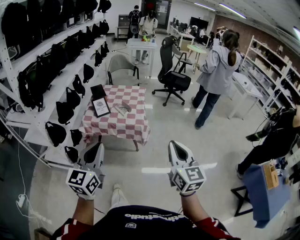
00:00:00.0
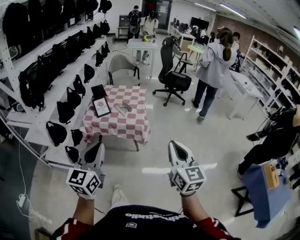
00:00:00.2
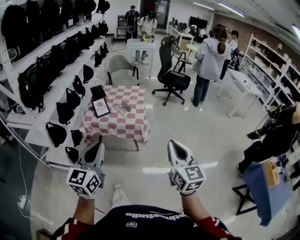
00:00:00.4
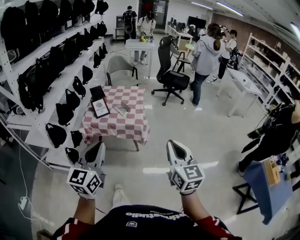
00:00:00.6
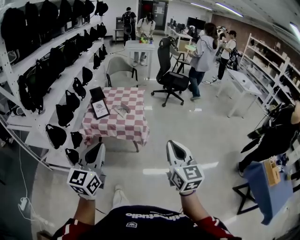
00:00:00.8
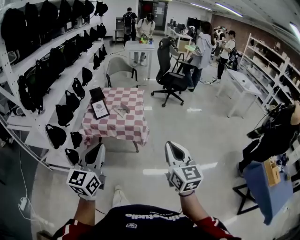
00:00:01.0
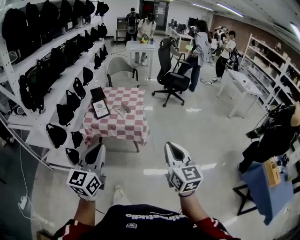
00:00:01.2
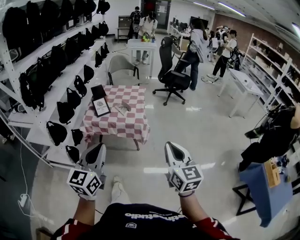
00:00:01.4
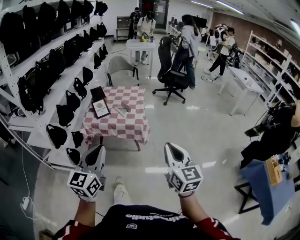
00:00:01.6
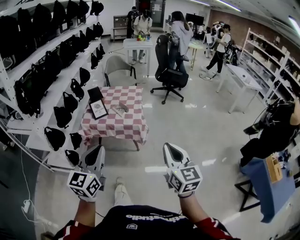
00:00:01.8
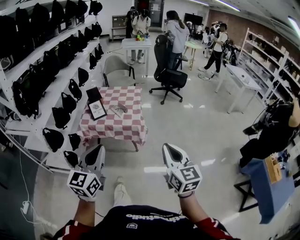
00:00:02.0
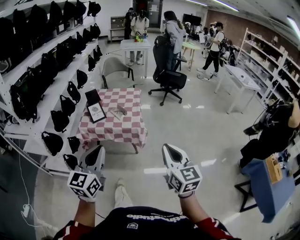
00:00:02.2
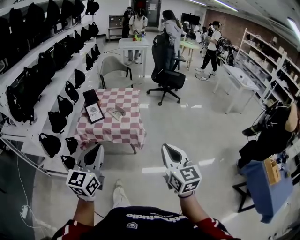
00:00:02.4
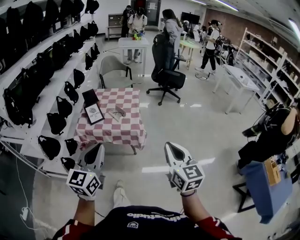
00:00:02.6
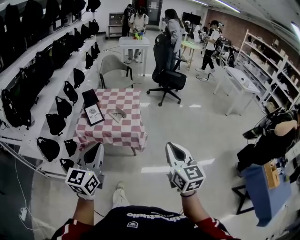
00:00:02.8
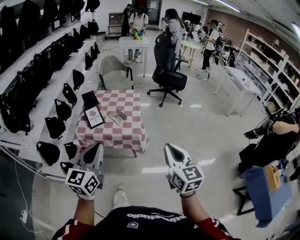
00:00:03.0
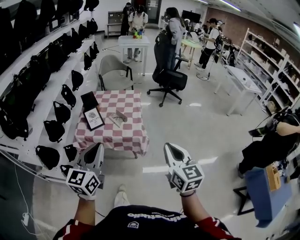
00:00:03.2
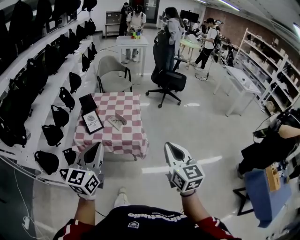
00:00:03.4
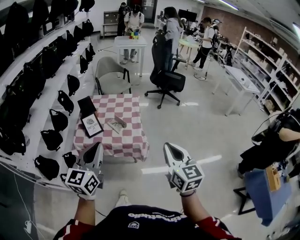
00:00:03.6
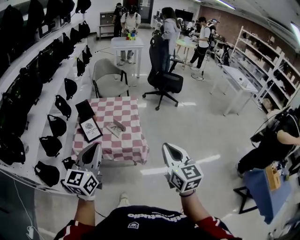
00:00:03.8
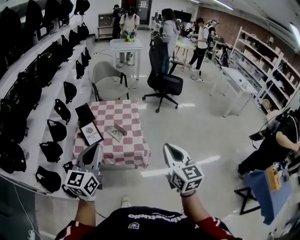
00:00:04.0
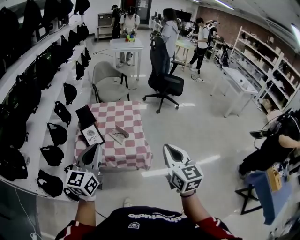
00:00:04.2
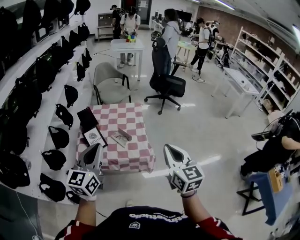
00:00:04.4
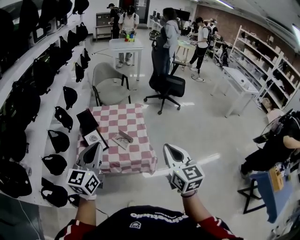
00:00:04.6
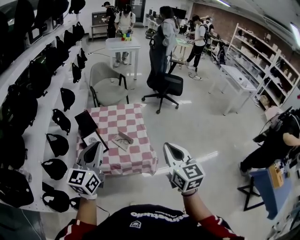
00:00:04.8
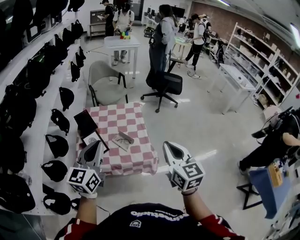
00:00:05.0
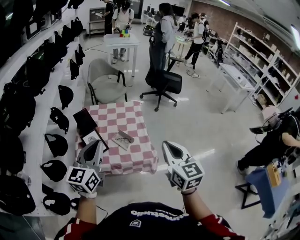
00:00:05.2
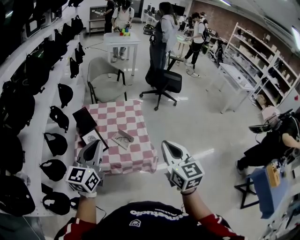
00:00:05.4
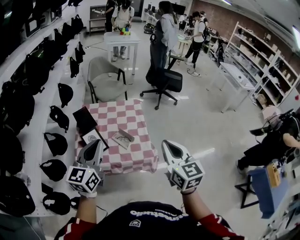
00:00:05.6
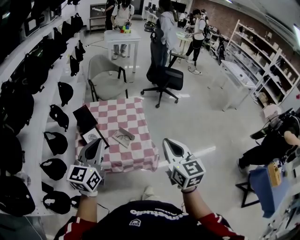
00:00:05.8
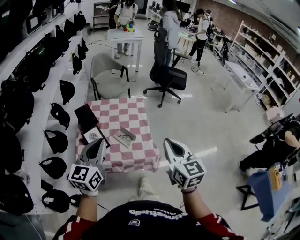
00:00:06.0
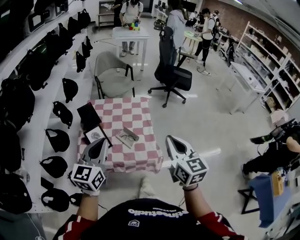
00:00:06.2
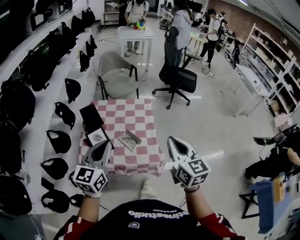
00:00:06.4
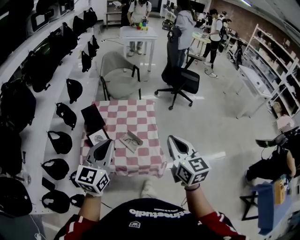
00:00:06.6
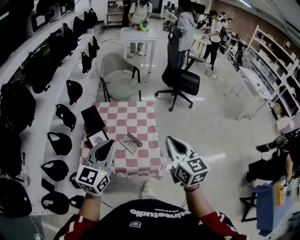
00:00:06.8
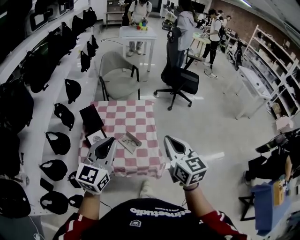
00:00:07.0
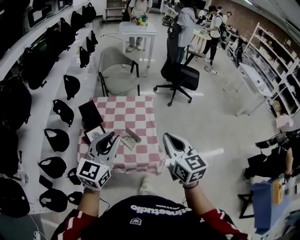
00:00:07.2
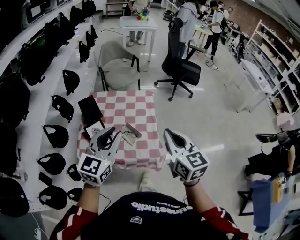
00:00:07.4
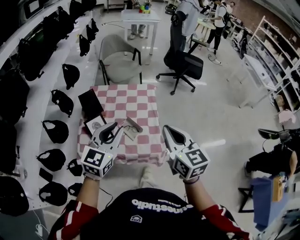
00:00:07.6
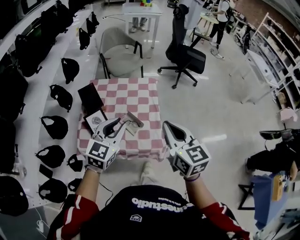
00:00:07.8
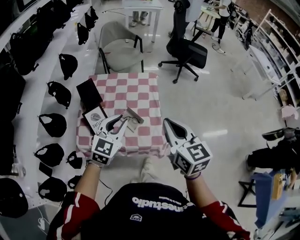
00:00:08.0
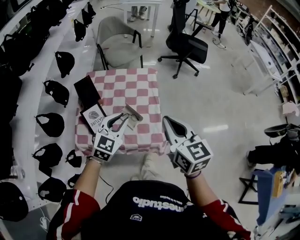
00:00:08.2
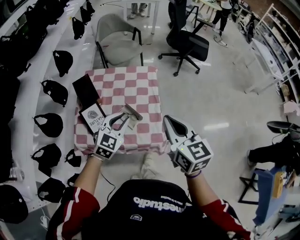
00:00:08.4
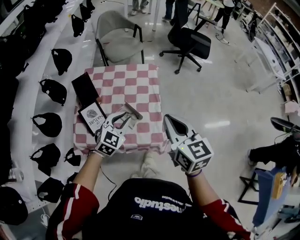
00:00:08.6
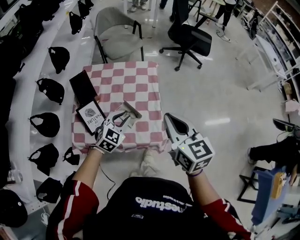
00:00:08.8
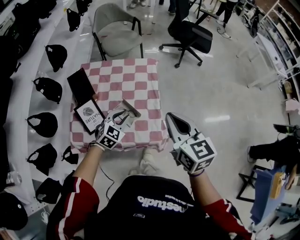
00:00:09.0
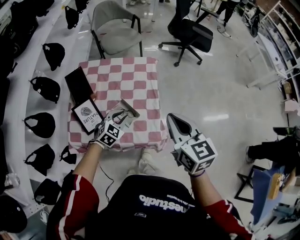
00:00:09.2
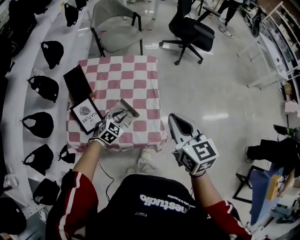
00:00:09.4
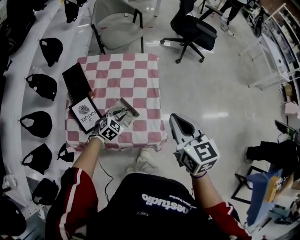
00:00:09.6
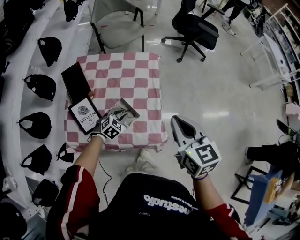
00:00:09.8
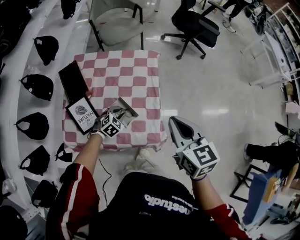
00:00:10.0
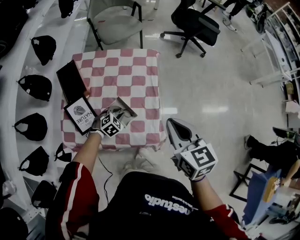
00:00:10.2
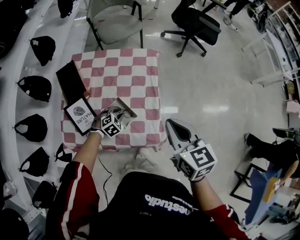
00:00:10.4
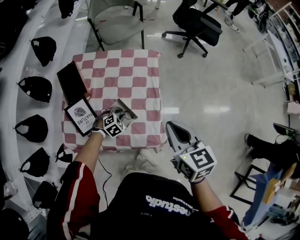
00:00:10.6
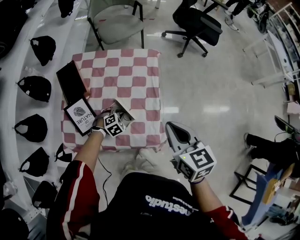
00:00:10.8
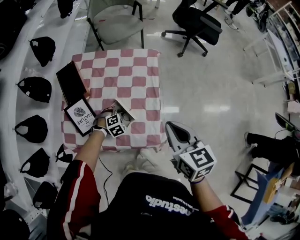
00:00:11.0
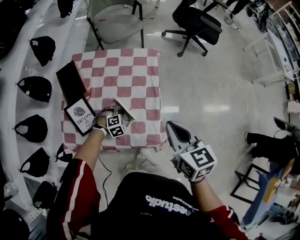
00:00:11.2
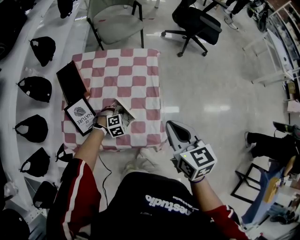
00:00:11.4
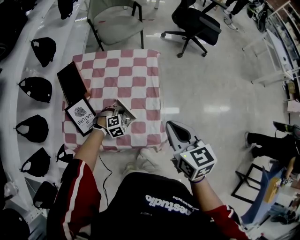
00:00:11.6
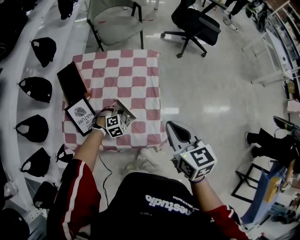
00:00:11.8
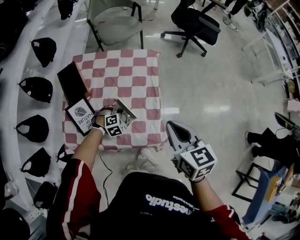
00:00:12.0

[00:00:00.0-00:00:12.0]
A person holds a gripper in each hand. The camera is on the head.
00:00:00.0 to 00:00:01.6: The grippers make only small movements.
00:00:01.6 to 00:00:03.0: Both grippers move forward, about 15 cm.
00:00:03.0 to 00:00:04.4: The left gripper moves forward, about 20 cm. The right gripper heads forward and to the left, covering some 20 cm.
00:00:04.4 to 00:00:06.0: The left gripper shifts roughly 10 cm forward. Meanwhile the right gripper heads forward and to the left, covering roughly 10 cm.
00:00:06.0 to 00:00:07.6: The right gripper goes approximately 10 cm forward; the left gripper shifts some 10 cm forward and to the right.
00:00:07.6 to 00:00:09.0: The right gripper shifts approximately 10 cm downward and forward, while the left gripper goes about 25 cm downward, and rotates about 30 degrees.
00:00:09.0 to 00:00:10.4: The left gripper moves downward, some 20 cm, and rotates approximately 30 degrees. Meanwhile the right gripper shifts some 5 cm downward.
00:00:10.4 to 00:00:12.0: The grippers stay close to where they were, moving slightly.

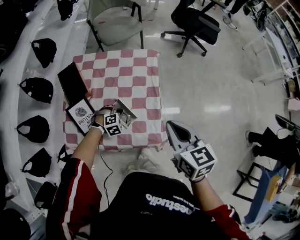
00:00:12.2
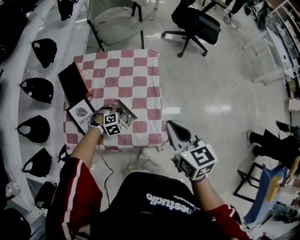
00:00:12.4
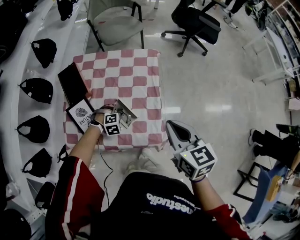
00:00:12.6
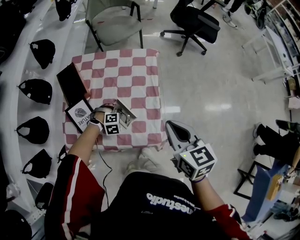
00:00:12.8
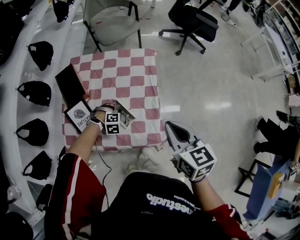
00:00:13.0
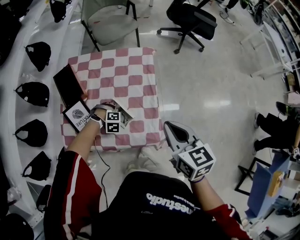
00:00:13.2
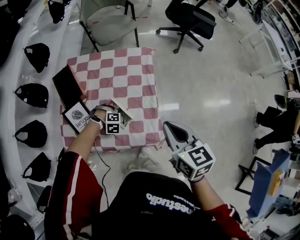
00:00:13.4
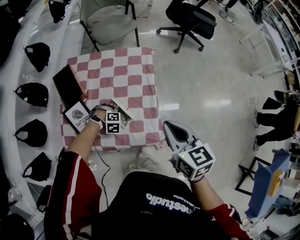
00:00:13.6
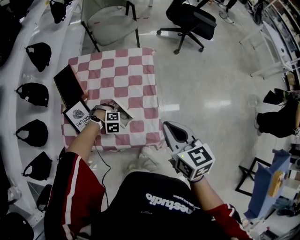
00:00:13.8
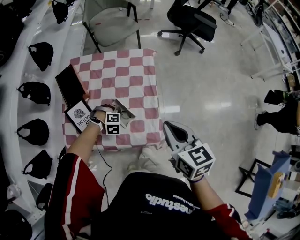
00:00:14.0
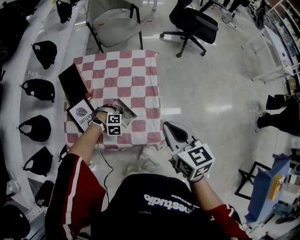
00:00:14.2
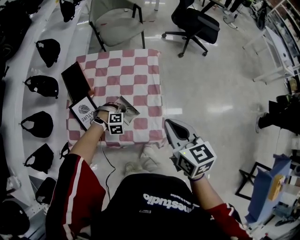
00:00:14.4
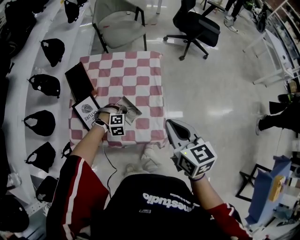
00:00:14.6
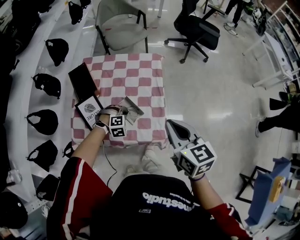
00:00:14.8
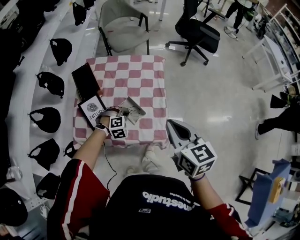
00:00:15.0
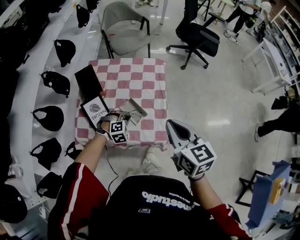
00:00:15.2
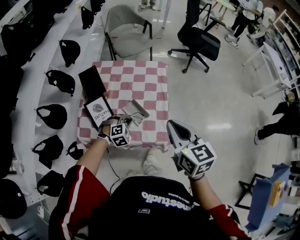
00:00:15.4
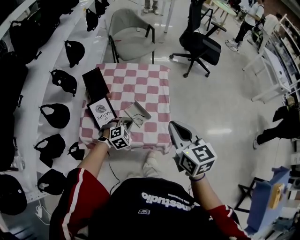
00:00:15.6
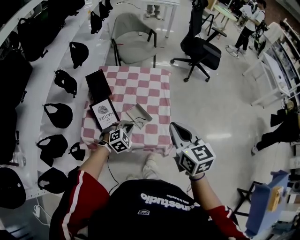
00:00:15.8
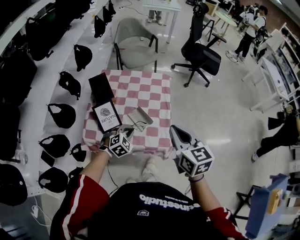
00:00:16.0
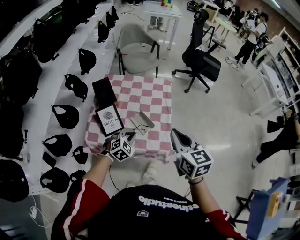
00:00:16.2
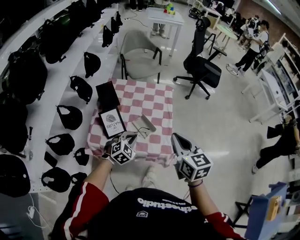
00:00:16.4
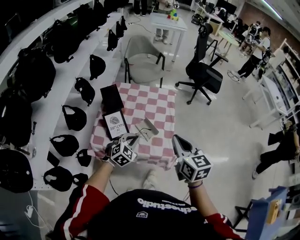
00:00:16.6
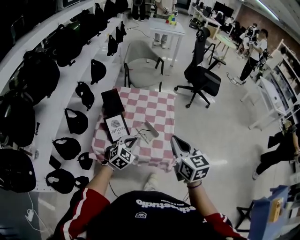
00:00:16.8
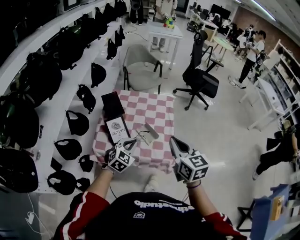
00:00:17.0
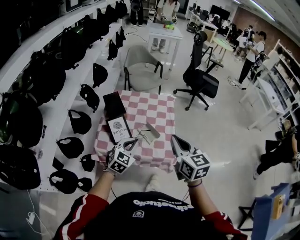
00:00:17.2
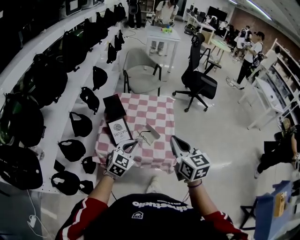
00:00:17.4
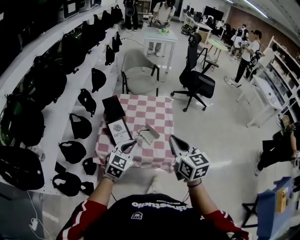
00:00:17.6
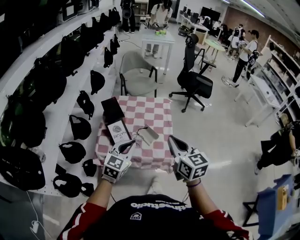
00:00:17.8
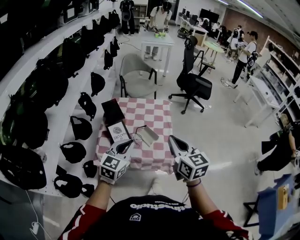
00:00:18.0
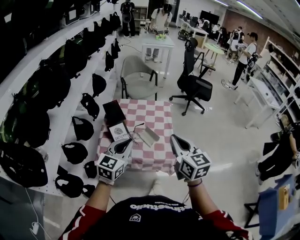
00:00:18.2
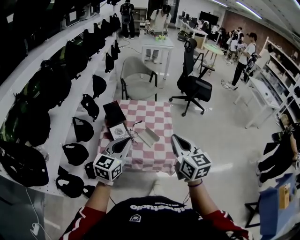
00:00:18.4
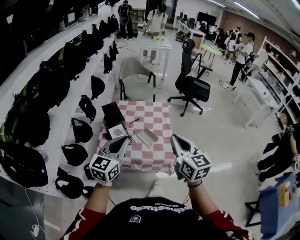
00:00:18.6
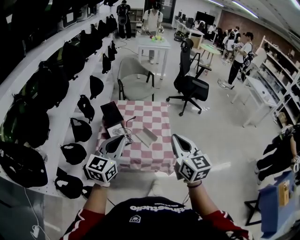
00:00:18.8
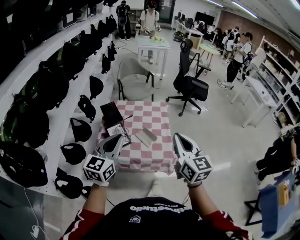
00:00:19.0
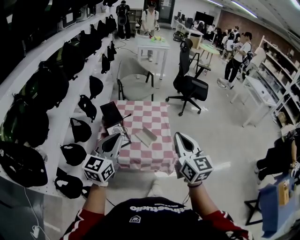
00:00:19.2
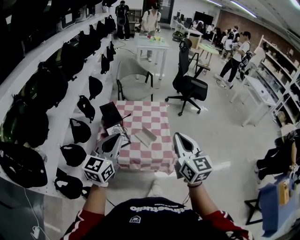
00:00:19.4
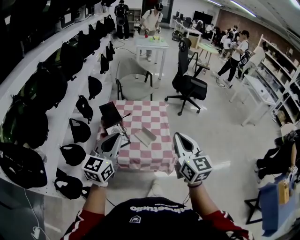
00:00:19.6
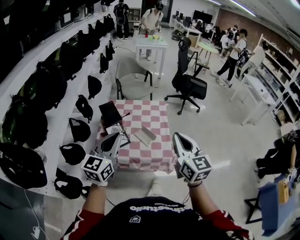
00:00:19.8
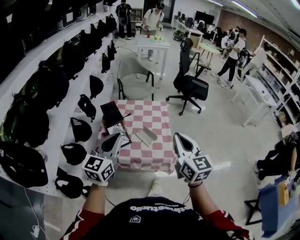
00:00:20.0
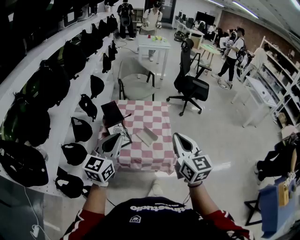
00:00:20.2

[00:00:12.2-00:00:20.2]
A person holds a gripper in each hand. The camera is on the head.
00:00:12.2 to 00:00:13.8: The left gripper changes its angle by some 20 degrees.
00:00:13.8 to 00:00:15.4: The left gripper moves upward, some 10 cm, and swivels roughly 30 degrees. Meanwhile the right gripper shifts by about 10 cm.
00:00:15.4 to 00:00:17.0: The right gripper moves backward, to the left and upward, roughly 10 cm. The left gripper travels upward and backward by approximately 20 cm, and swivels about 40 degrees.
00:00:17.0 to 00:00:18.6: The right gripper travels backward and upward by about 10 cm. Meanwhile the left gripper is displaced upward and backward by some 20 cm, and rotates about 40 degrees.
00:00:18.6 to 00:00:20.2: The grippers make only small movements.

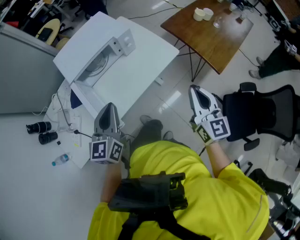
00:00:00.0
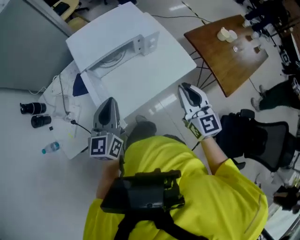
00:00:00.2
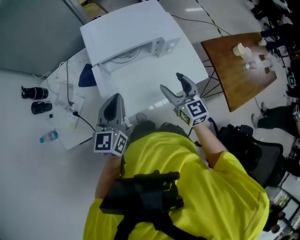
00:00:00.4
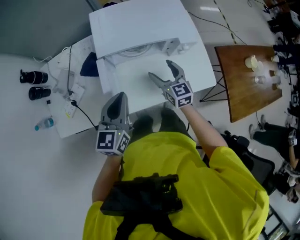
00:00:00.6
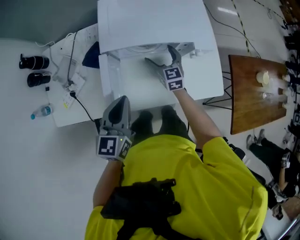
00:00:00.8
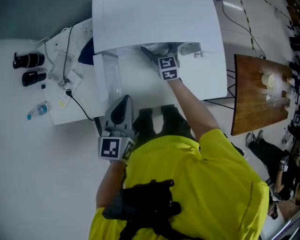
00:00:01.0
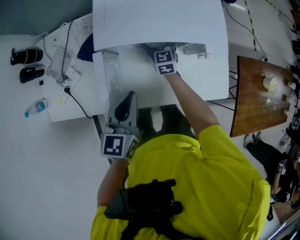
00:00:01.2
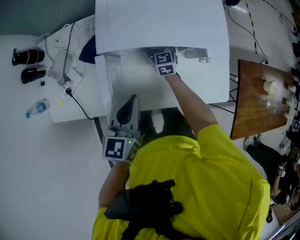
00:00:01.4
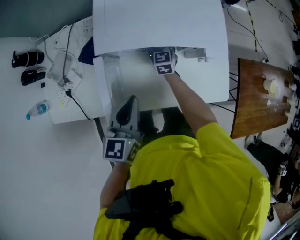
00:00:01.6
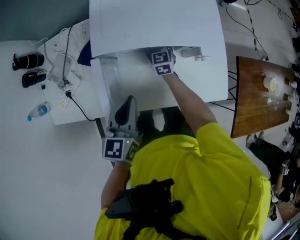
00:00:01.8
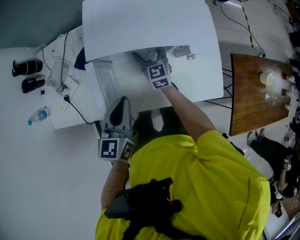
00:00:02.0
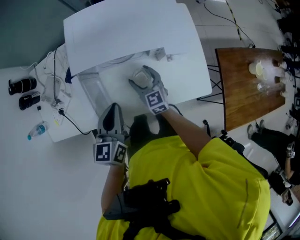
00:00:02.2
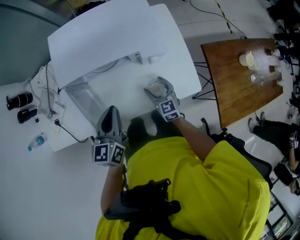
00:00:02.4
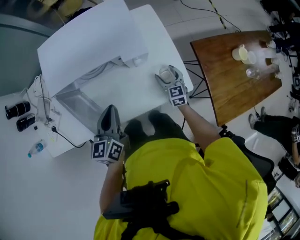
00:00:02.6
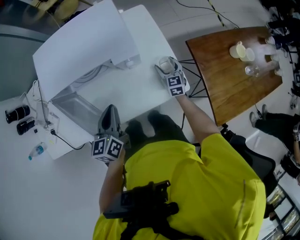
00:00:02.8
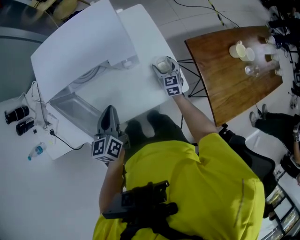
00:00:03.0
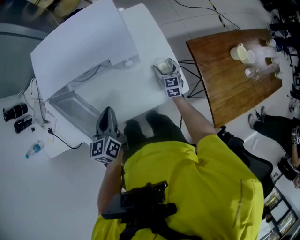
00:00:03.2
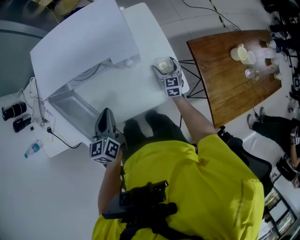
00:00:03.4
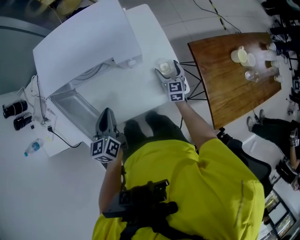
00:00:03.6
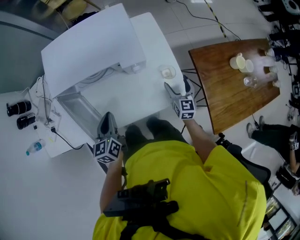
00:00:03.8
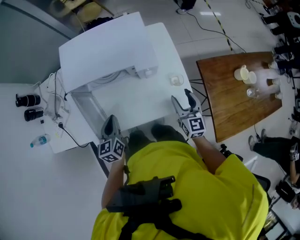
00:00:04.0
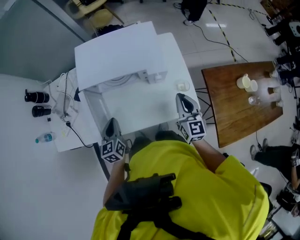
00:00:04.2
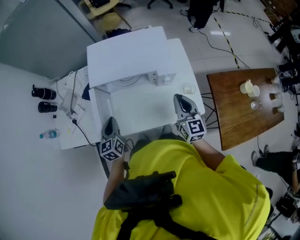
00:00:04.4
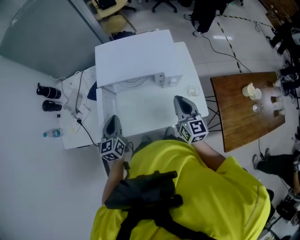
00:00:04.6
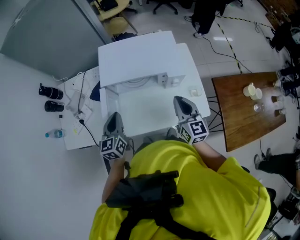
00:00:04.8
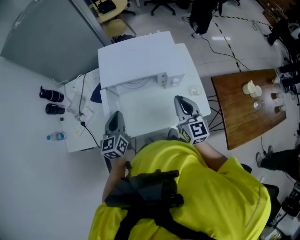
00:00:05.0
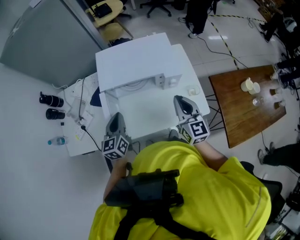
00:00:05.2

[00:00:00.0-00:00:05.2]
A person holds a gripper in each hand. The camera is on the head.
00:00:00.0 to 00:00:01.8: The left gripper shifts by roughly 25 cm, and turns by roughly 30 degrees; the right gripper changes place by roughly 70 cm, swivels about 40 degrees, and opens.
00:00:01.8 to 00:00:03.4: The left gripper goes some 15 cm to the right and downward. The right gripper is displaced to the right by roughly 35 cm, and rotates some 20 degrees.
00:00:03.4 to 00:00:05.2: The left gripper goes some 20 cm to the left and upward. The right gripper is displaced upward and to the left by some 40 cm, turns by approximately 30 degrees, and closes up.
